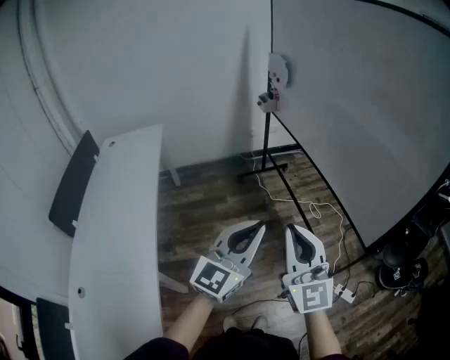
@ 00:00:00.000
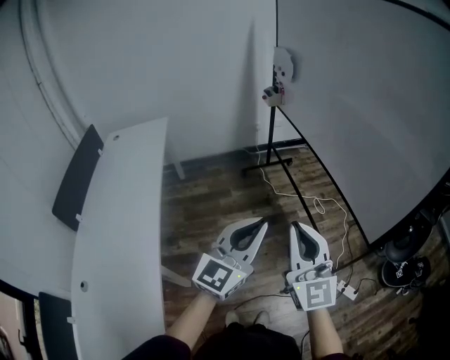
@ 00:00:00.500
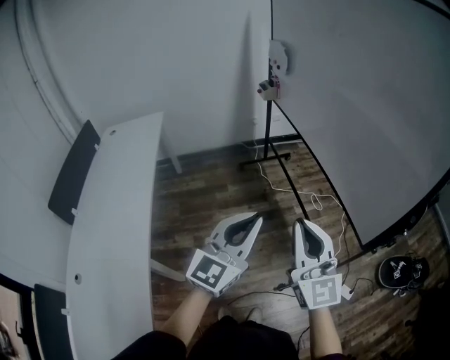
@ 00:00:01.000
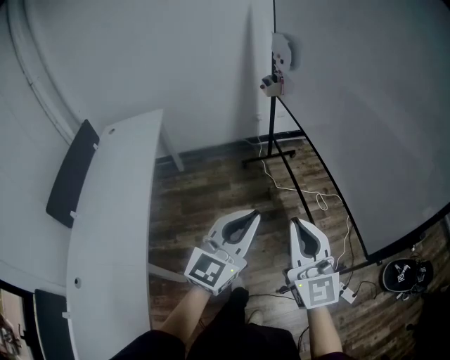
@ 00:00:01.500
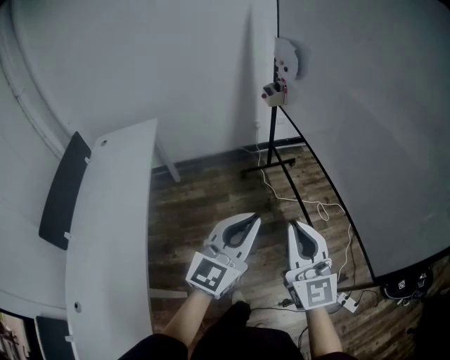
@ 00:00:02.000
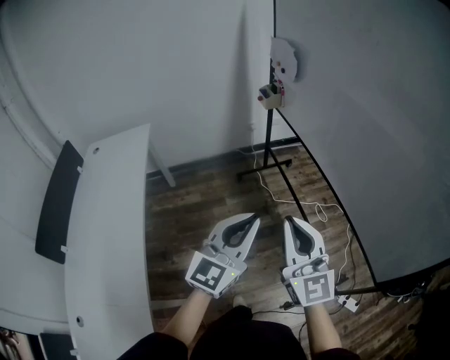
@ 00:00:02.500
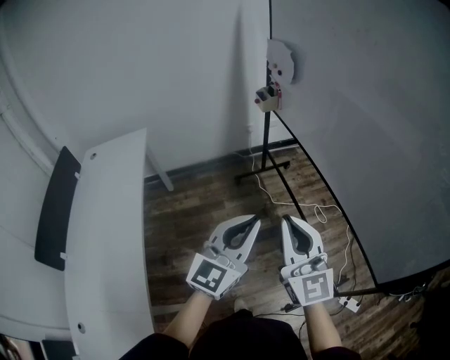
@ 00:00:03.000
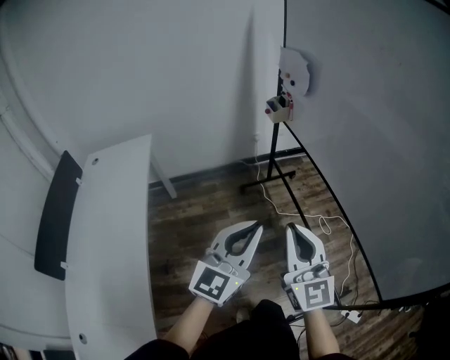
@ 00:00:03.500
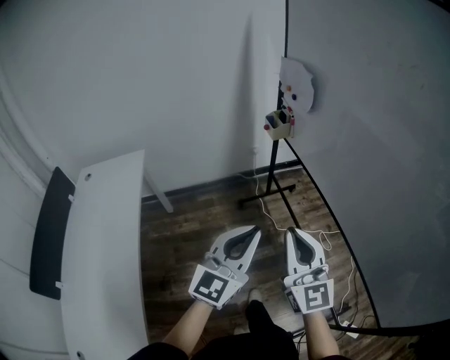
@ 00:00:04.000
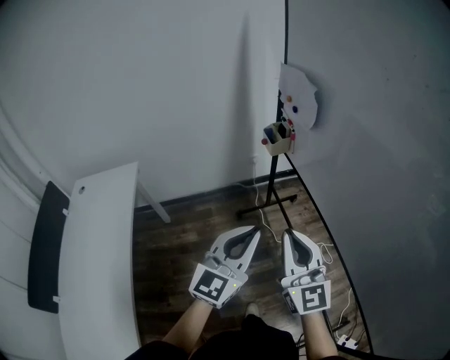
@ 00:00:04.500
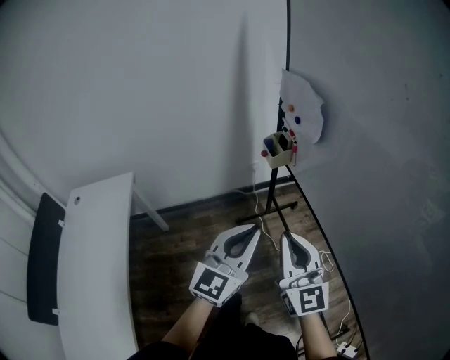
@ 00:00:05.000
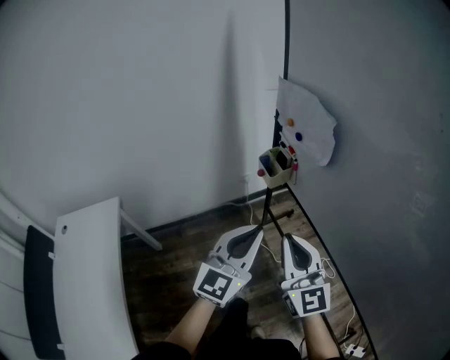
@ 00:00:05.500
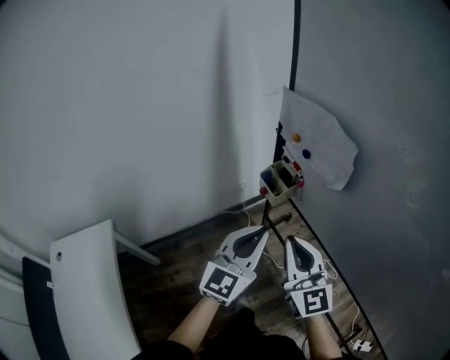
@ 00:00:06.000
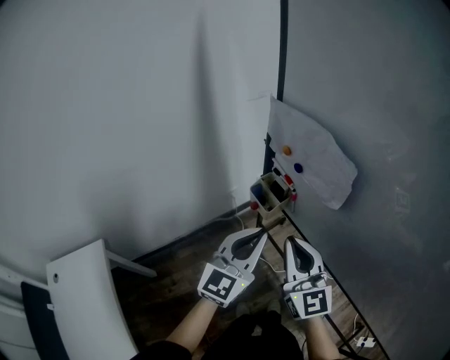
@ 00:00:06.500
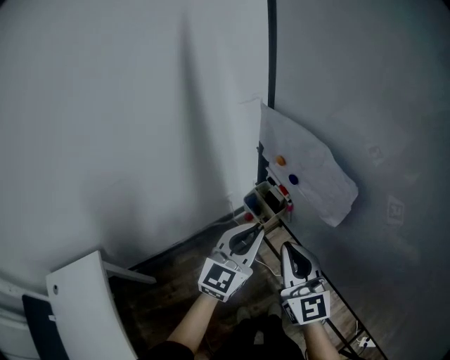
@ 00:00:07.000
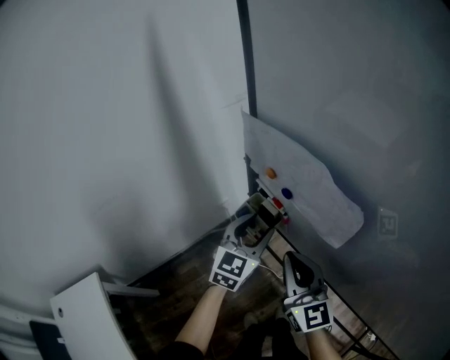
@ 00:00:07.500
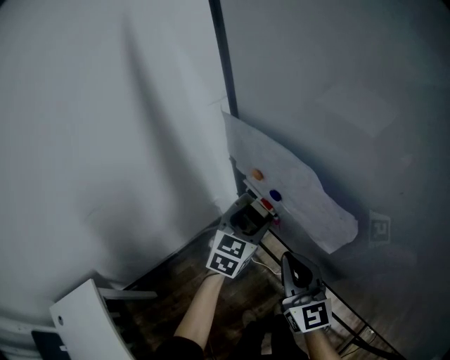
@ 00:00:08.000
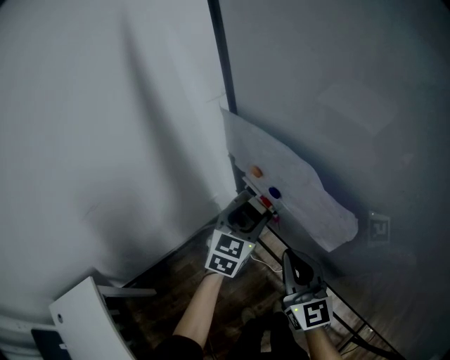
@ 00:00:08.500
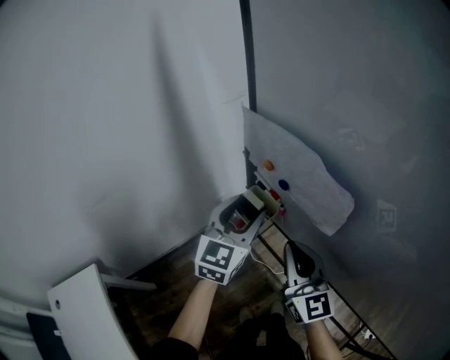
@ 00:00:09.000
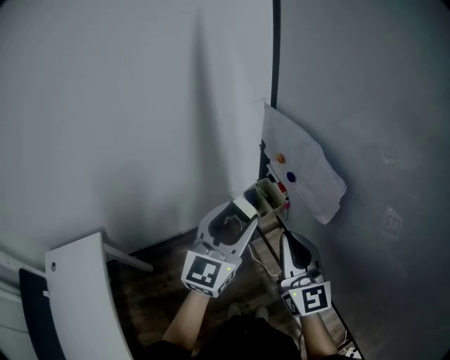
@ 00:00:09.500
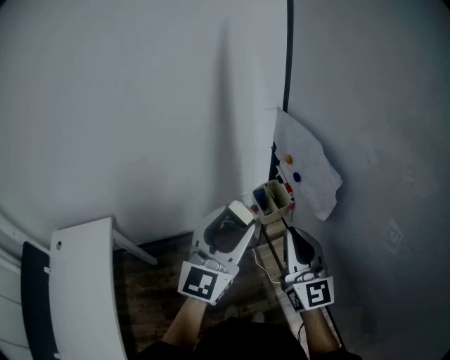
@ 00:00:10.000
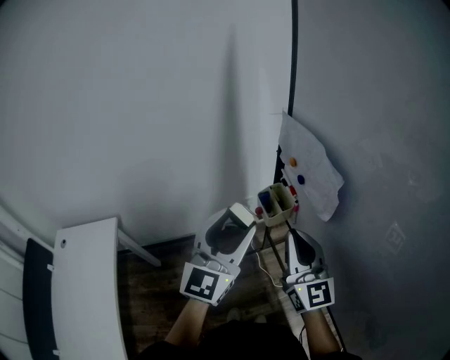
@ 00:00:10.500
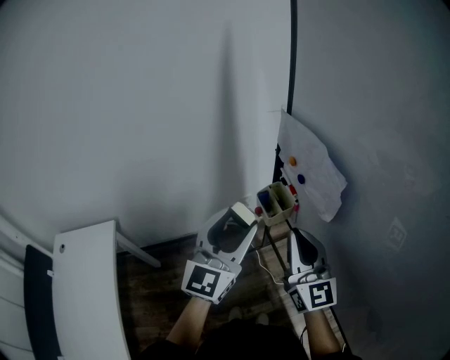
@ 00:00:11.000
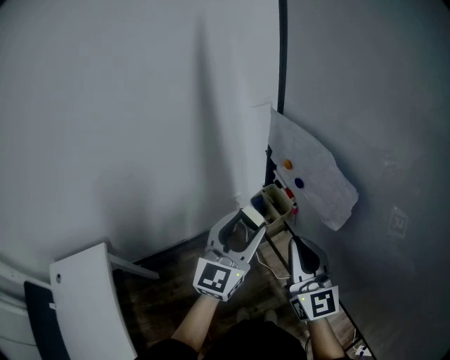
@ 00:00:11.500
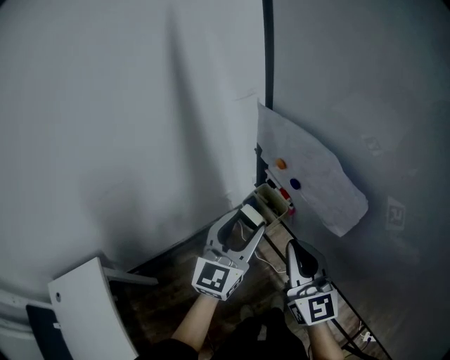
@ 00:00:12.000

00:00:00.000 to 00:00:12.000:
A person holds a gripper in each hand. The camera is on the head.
00:00:00.000 to 00:00:02.000: Both grippers move forward, about 20 cm.
00:00:02.000 to 00:00:04.000: The grippers both shift forward by roughly 25 cm.
00:00:04.000 to 00:00:06.000: The pair of grippers is taken forward, some 40 cm.
00:00:06.000 to 00:00:08.000: The left gripper travels forward and downward by roughly 30 cm, swivels approximately 30 degrees, and opens; the right gripper goes approximately 15 cm forward and downward.
00:00:08.000 to 00:00:10.000: The left gripper travels backward and upward by about 30 cm, and points its fingers some 30 degrees further upward. The right gripper is displaced upward and backward by about 10 cm, and rotates roughly 20 degrees.
00:00:10.000 to 00:00:12.000: The left gripper goes approximately 15 cm forward and downward. Meanwhile the right gripper changes place by roughly 5 cm.

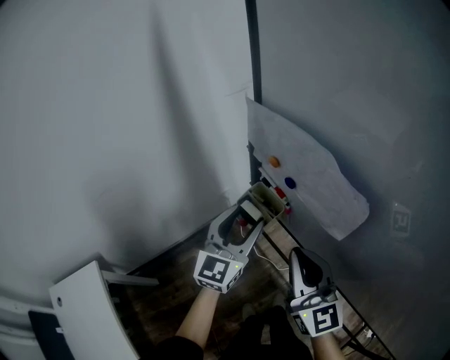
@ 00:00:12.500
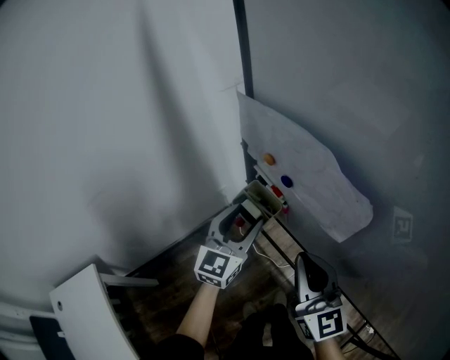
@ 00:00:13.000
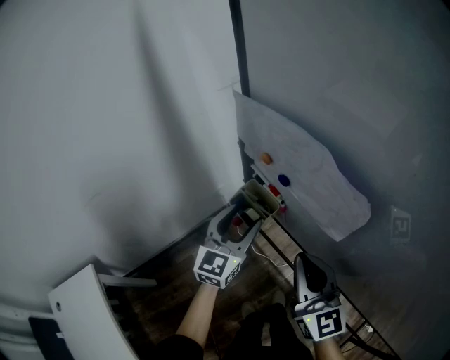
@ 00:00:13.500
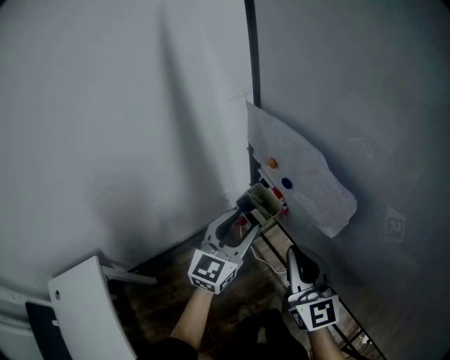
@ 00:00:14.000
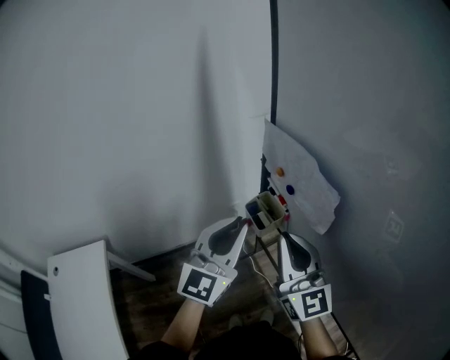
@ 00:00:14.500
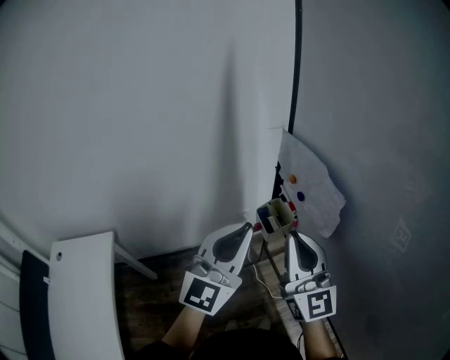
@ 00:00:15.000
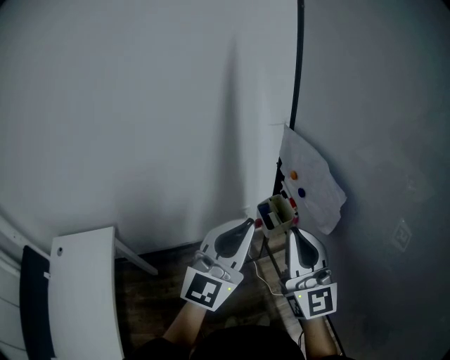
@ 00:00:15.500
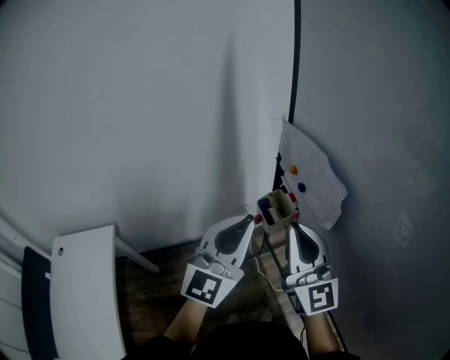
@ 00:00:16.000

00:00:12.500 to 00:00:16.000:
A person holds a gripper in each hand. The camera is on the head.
00:00:12.500 to 00:00:14.500: The right gripper travels upward by about 10 cm, while the left gripper goes about 15 cm upward and backward, and closes up.
00:00:14.500 to 00:00:16.000: The left gripper changes place by roughly 5 cm.

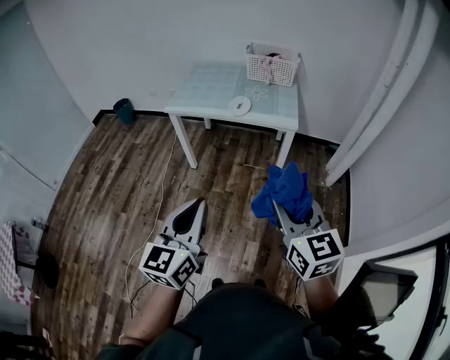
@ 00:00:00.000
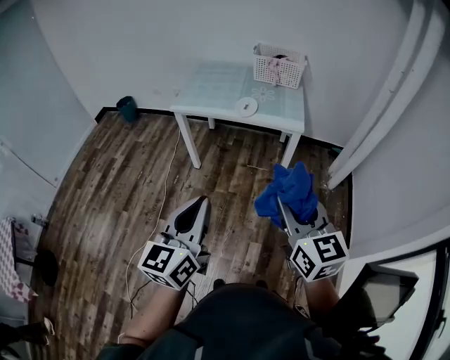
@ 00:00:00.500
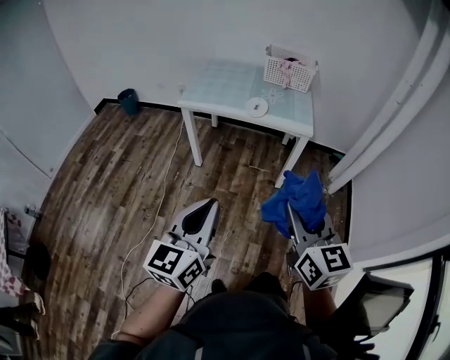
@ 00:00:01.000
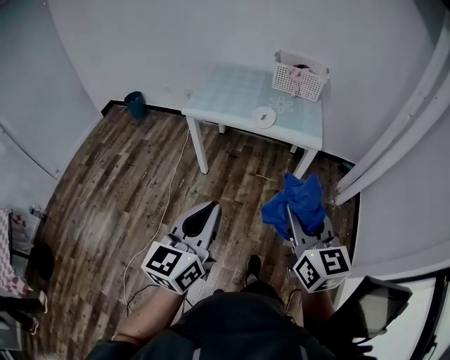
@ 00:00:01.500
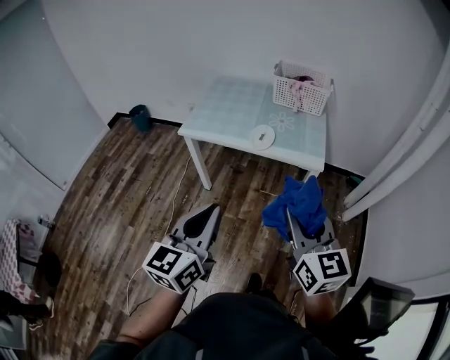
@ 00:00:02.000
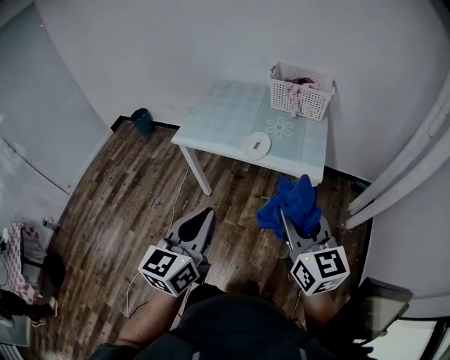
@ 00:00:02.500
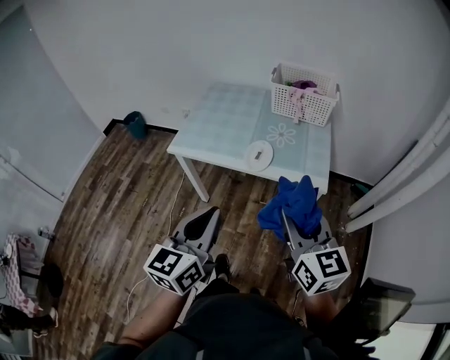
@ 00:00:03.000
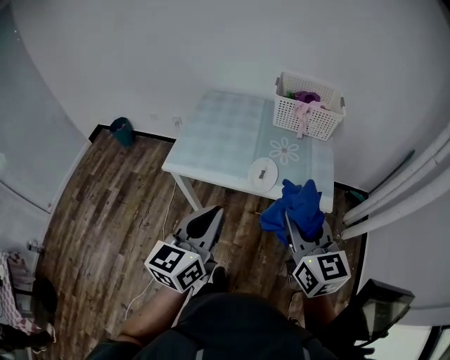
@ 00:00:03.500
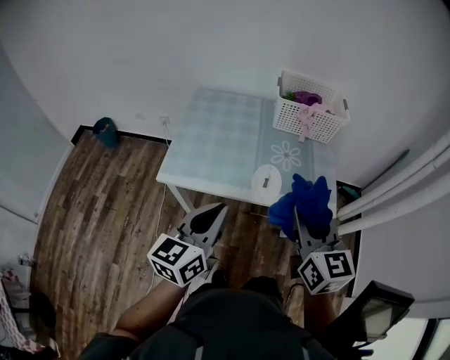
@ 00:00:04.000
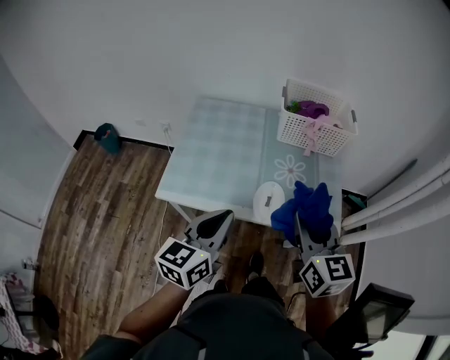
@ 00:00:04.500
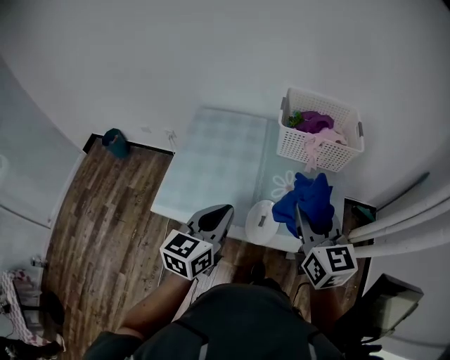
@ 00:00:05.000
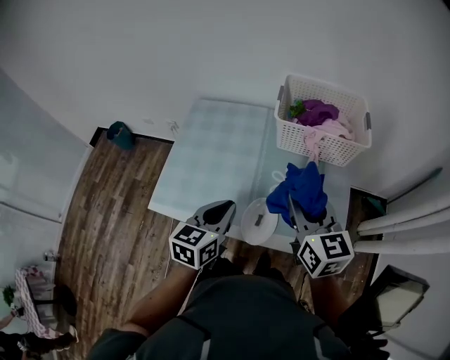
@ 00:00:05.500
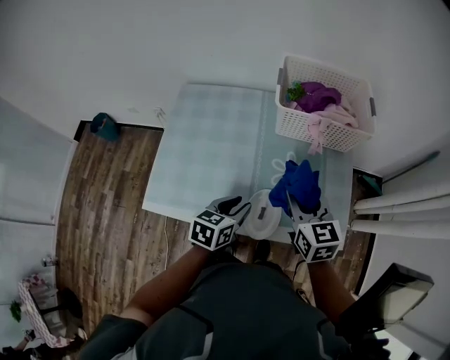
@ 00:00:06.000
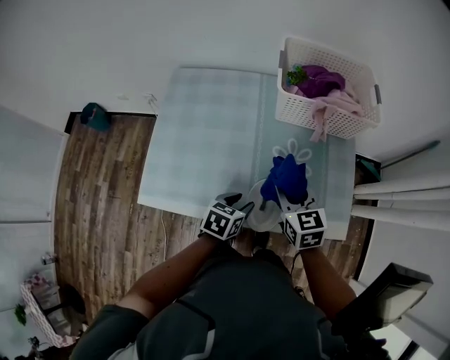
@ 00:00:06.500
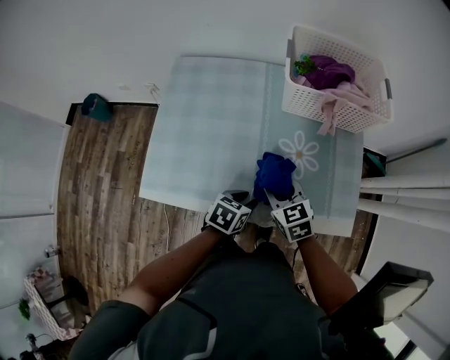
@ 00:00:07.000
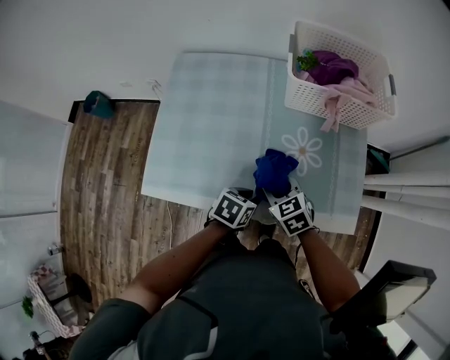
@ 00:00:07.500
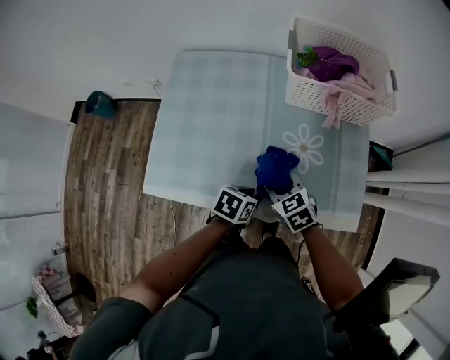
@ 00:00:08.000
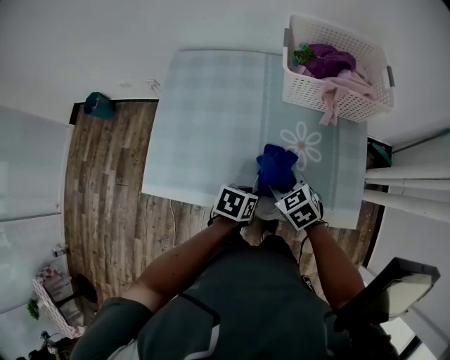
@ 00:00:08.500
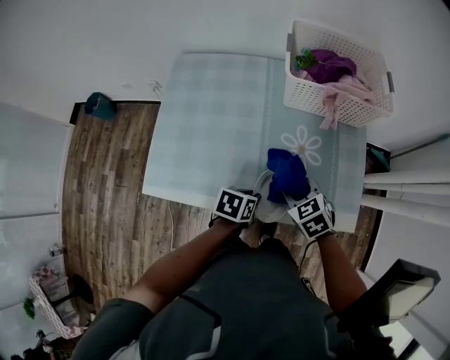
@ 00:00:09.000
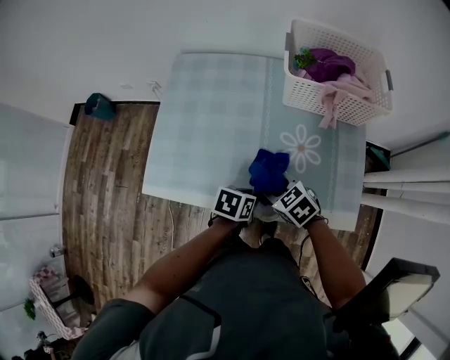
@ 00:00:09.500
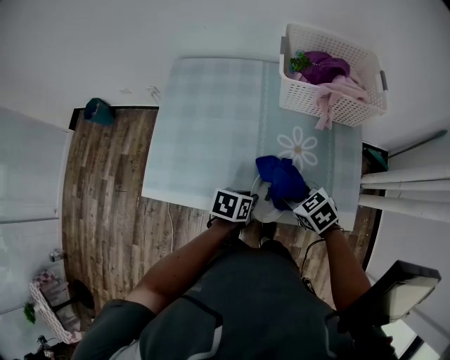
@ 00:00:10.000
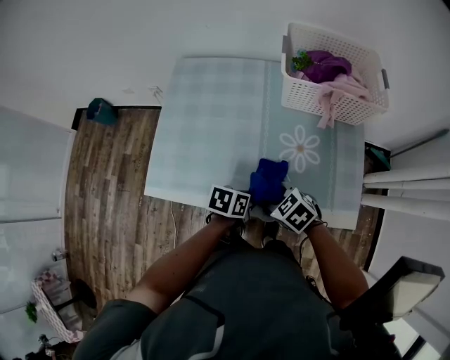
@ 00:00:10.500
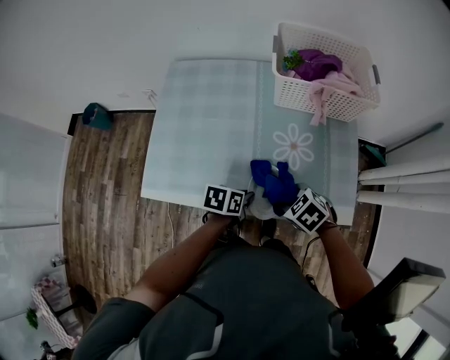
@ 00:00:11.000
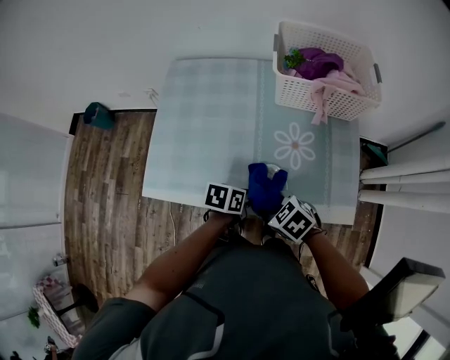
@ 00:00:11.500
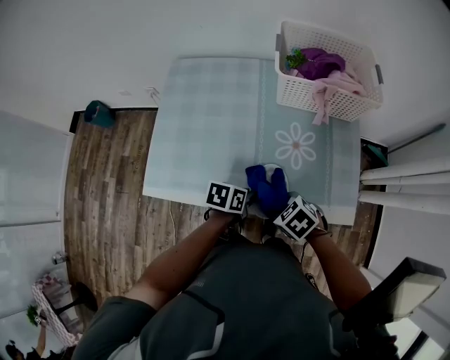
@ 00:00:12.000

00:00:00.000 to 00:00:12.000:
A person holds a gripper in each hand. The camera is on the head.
00:00:00.000 to 00:00:02.000: The two grippers go approximately 20 cm forward.
00:00:02.000 to 00:00:04.000: Both grippers travel together forward, some 30 cm.
00:00:04.000 to 00:00:06.000: Both grippers travel together forward and downward, some 30 cm. The left gripper tips its fingers downward by approximately 30 degrees, and opens up.
00:00:06.000 to 00:00:08.000: The right gripper heads downward and to the left, covering roughly 20 cm, and swivels roughly 30 degrees. The left gripper travels downward by about 10 cm, and swivels about 20 degrees.
00:00:08.000 to 00:00:10.000: The right gripper ends up some 5 cm from where it was.
00:00:10.000 to 00:00:12.000: The right gripper ends up some 5 cm from where it was.
